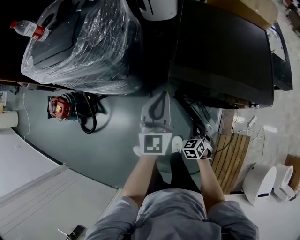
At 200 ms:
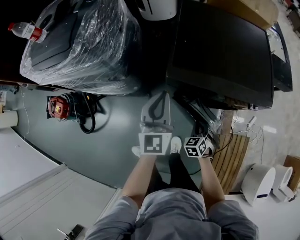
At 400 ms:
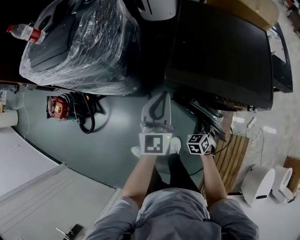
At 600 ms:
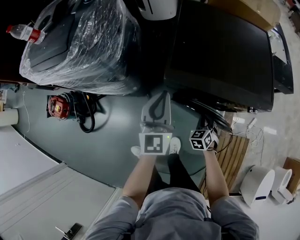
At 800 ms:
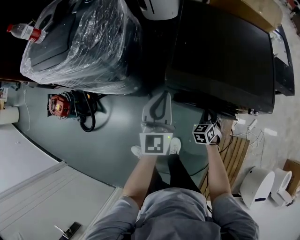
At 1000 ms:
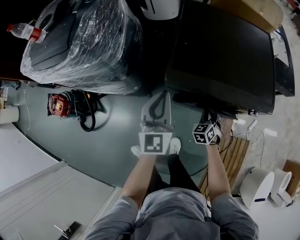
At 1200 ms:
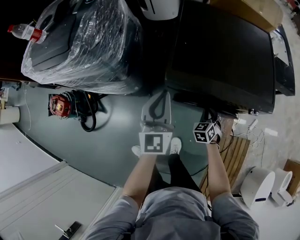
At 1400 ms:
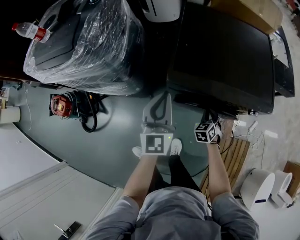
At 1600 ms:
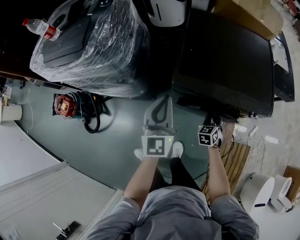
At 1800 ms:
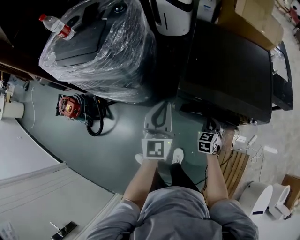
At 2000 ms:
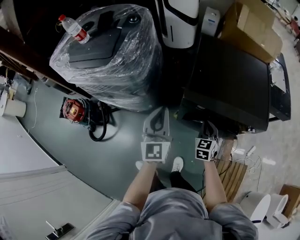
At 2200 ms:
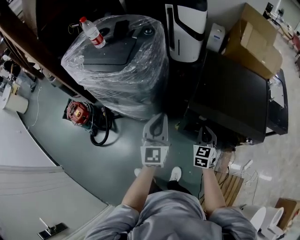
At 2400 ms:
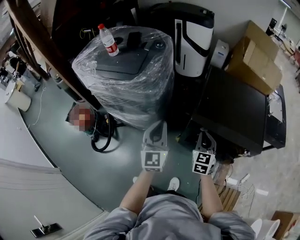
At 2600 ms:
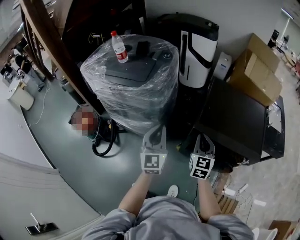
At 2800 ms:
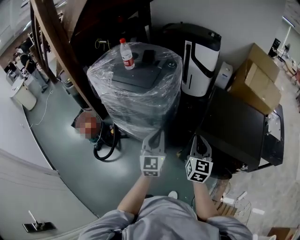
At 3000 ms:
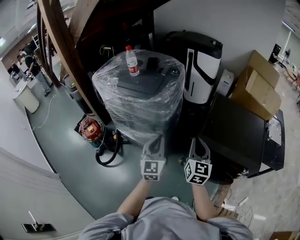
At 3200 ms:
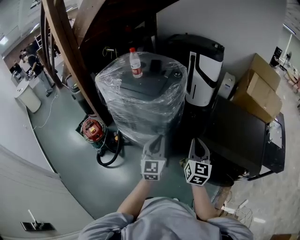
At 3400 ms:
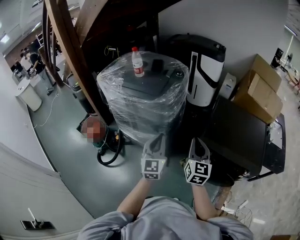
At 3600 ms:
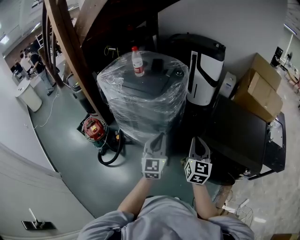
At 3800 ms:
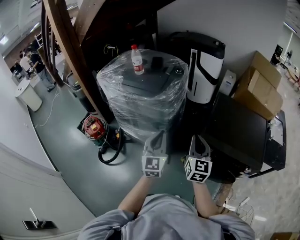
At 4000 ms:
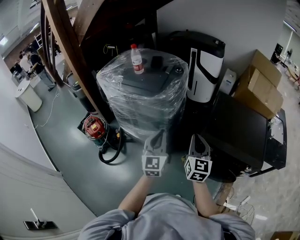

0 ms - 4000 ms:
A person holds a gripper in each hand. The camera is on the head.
0 ms - 1400 ms: The right gripper shifts some 15 cm forward and to the right.
1400 ms - 2600 ms: The left gripper travels to the left, upward and backward by approximately 20 cm, while the right gripper goes roughly 40 cm upward and to the left, and tilts its fingers approximately 30 degrees upward.
2600 ms - 4000 ms: The right gripper travels to the left and upward by about 10 cm; the left gripper shifts about 5 cm to the left.

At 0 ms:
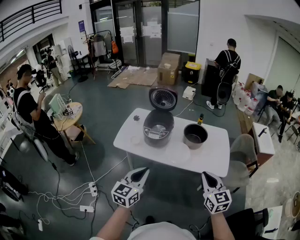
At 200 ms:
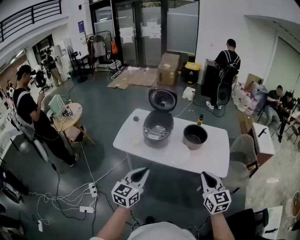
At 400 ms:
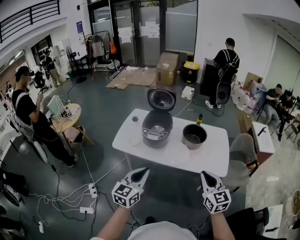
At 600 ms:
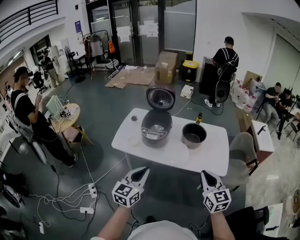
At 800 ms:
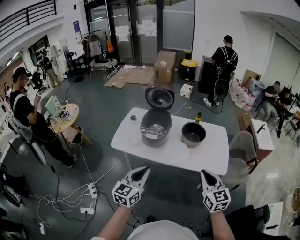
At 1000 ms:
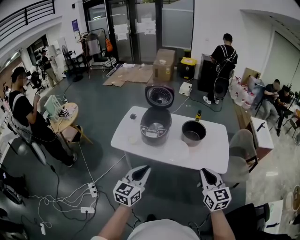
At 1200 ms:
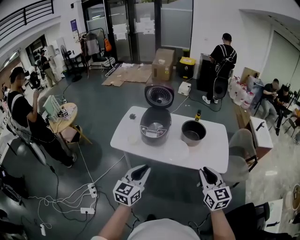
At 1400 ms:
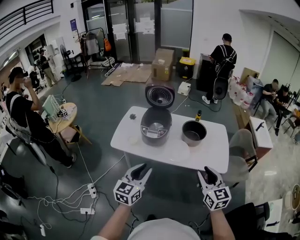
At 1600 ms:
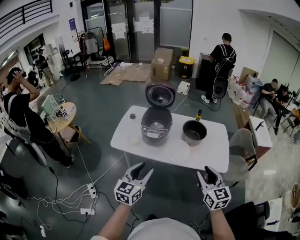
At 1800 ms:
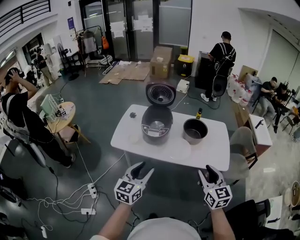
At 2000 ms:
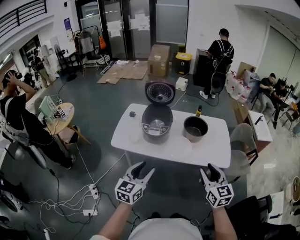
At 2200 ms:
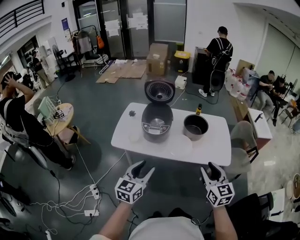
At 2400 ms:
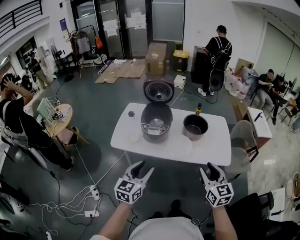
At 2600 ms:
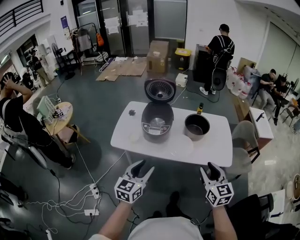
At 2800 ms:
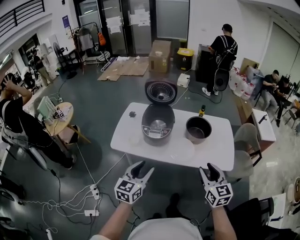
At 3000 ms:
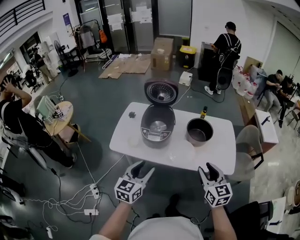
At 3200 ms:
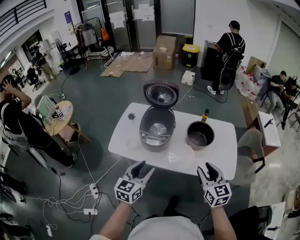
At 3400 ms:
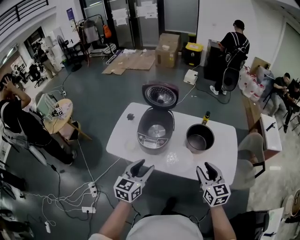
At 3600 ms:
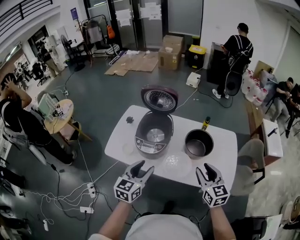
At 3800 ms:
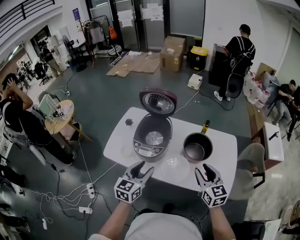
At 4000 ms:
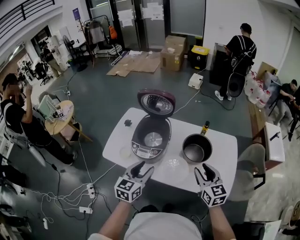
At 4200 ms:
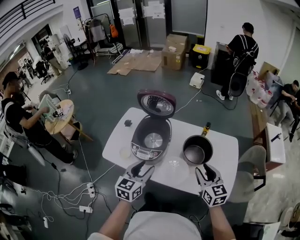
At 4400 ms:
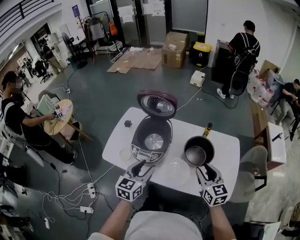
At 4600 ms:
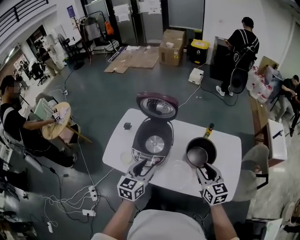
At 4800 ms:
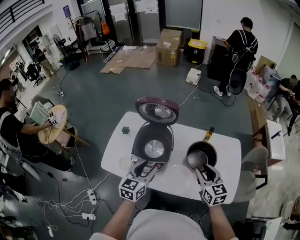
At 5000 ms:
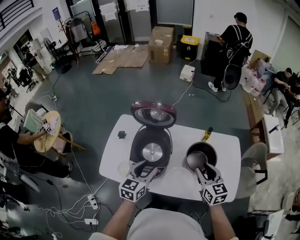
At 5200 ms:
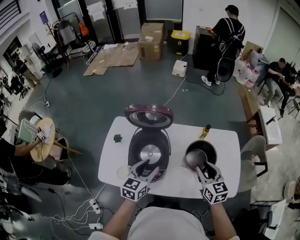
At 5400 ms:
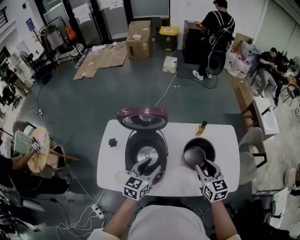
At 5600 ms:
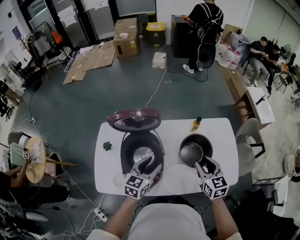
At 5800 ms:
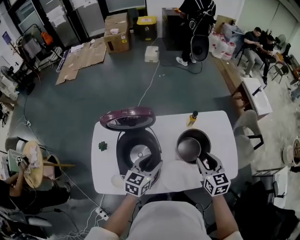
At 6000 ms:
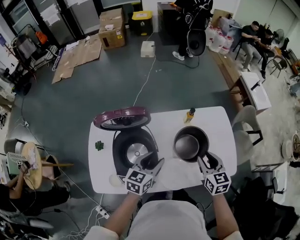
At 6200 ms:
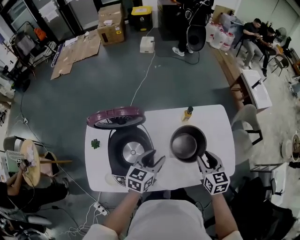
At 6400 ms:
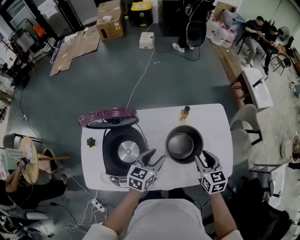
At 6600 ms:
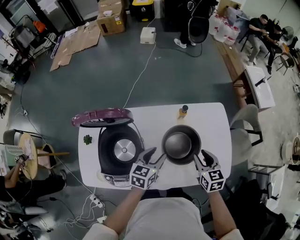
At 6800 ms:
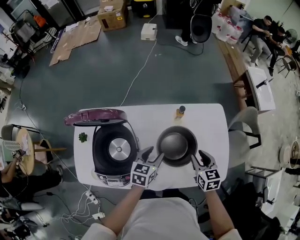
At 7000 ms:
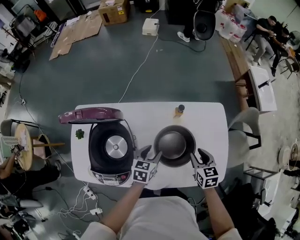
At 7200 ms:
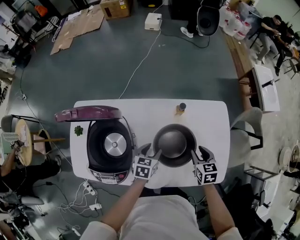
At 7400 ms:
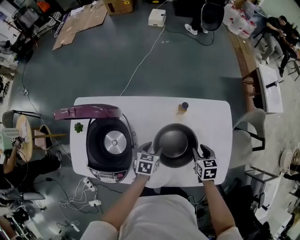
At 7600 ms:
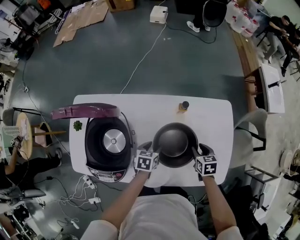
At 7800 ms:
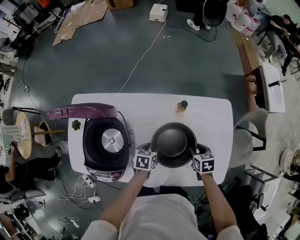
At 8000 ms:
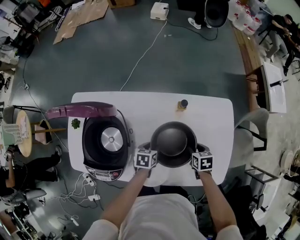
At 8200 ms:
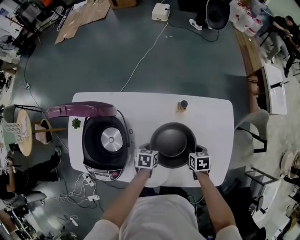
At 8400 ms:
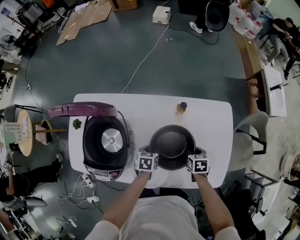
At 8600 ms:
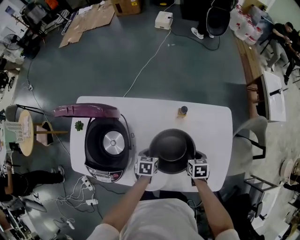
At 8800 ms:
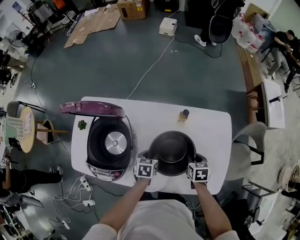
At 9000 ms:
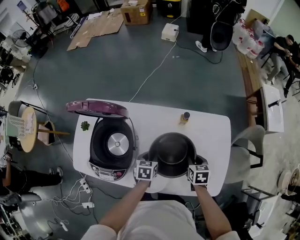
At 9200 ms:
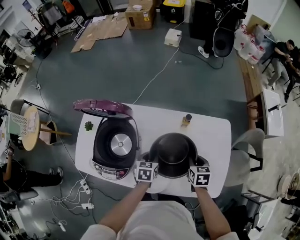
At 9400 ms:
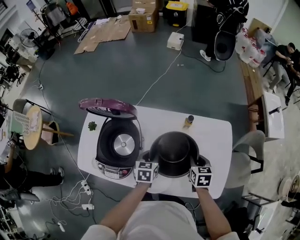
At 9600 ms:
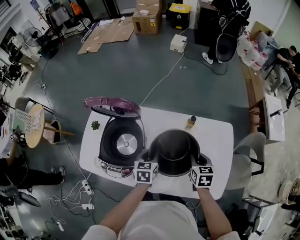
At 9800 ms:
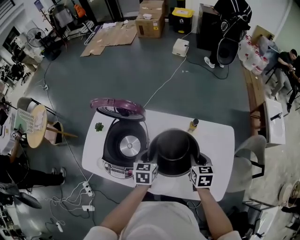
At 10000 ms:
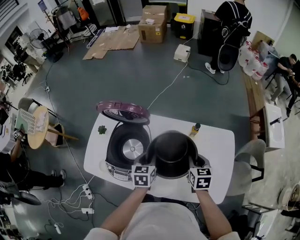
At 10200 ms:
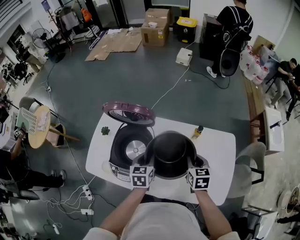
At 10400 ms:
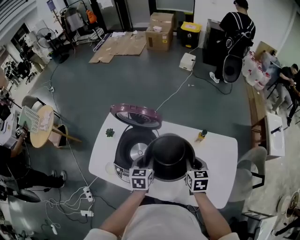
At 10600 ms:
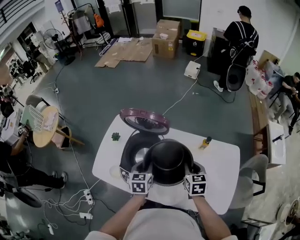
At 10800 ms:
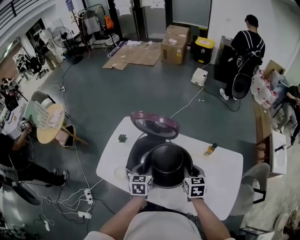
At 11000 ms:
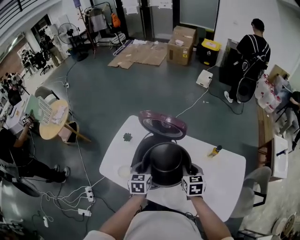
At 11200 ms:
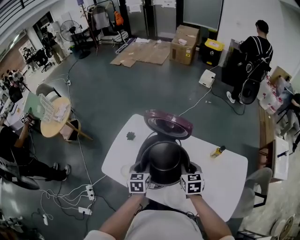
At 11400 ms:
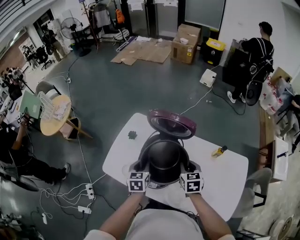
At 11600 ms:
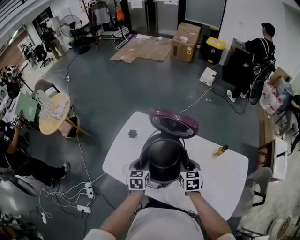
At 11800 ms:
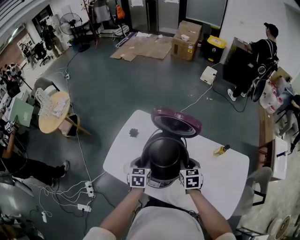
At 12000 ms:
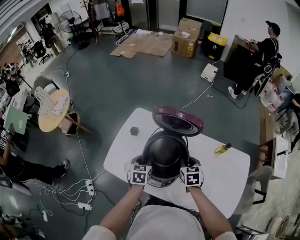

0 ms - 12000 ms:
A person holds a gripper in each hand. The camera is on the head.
0 ms - 1600 ms: The left gripper opens up. The right gripper opens.
1600 ms - 3000 ms: Both grippers move forward, about 10 cm.
3000 ms - 4400 ms: The two grippers go approximately 20 cm forward.
4400 ms - 6000 ms: The right gripper changes place by about 15 cm, and swivels some 30 degrees; the left gripper moves some 20 cm, and rotates some 30 degrees.
6000 ms - 7600 ms: The right gripper moves downward, to the right and forward, roughly 30 cm, and changes its angle by roughly 30 degrees, while the left gripper heads downward and to the right, covering some 25 cm, and points its fingers about 30 degrees further downward.
7600 ms - 9000 ms: The left gripper closes up. Meanwhile the right gripper ends up roughly 5 cm from where it was.
9000 ms - 10400 ms: Both grippers move upward and to the left, roughly 20 cm. The left gripper swivels some 20 degrees.
10400 ms - 12000 ms: The grippers both shift to the left by approximately 20 cm.

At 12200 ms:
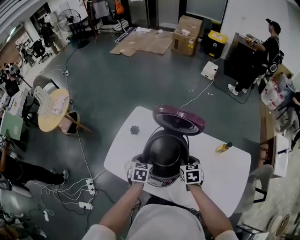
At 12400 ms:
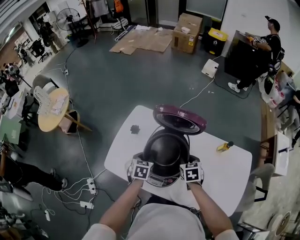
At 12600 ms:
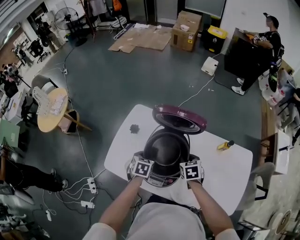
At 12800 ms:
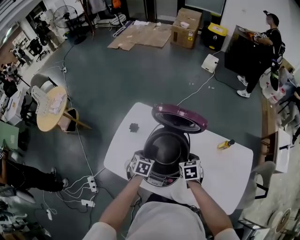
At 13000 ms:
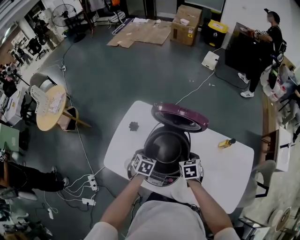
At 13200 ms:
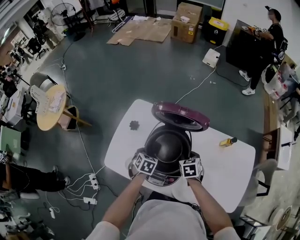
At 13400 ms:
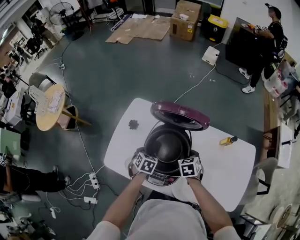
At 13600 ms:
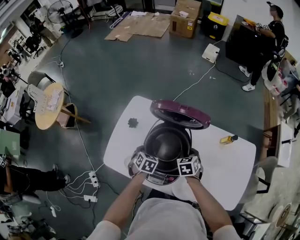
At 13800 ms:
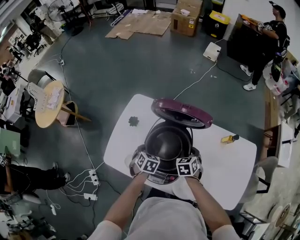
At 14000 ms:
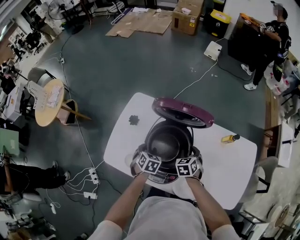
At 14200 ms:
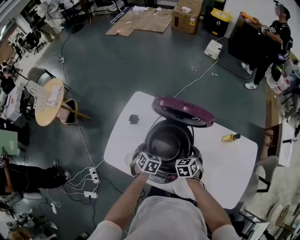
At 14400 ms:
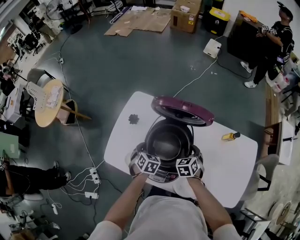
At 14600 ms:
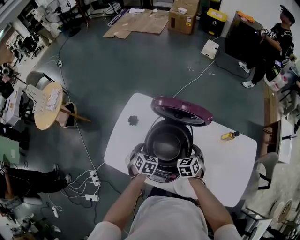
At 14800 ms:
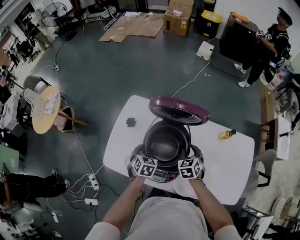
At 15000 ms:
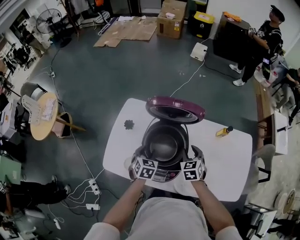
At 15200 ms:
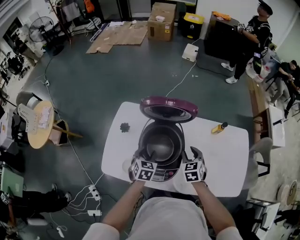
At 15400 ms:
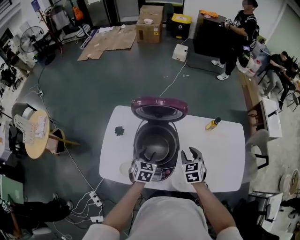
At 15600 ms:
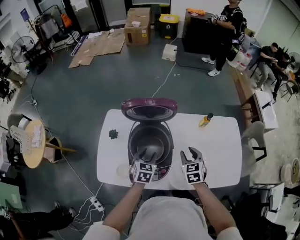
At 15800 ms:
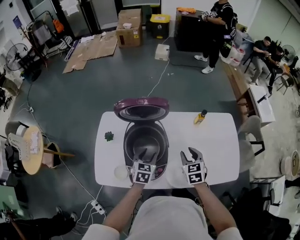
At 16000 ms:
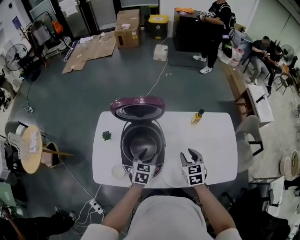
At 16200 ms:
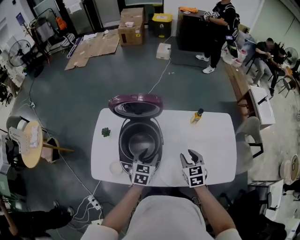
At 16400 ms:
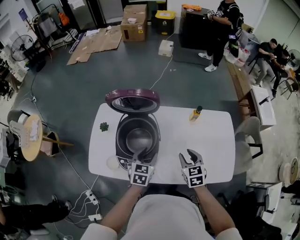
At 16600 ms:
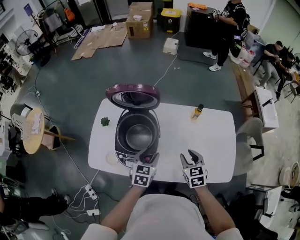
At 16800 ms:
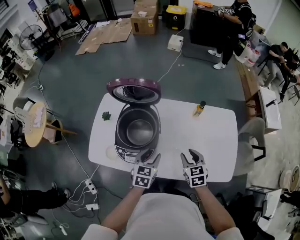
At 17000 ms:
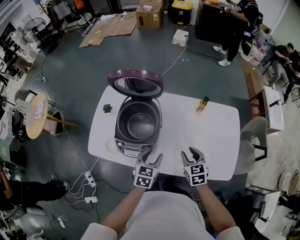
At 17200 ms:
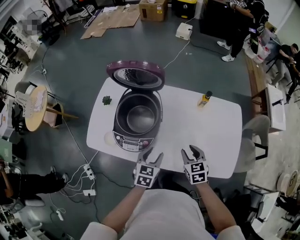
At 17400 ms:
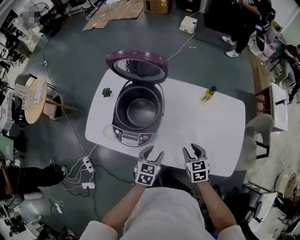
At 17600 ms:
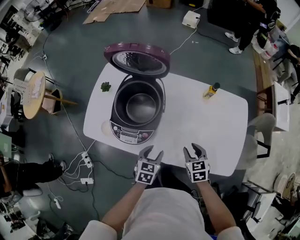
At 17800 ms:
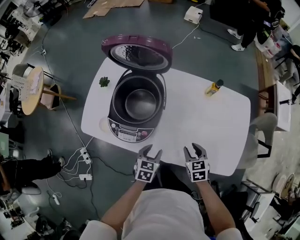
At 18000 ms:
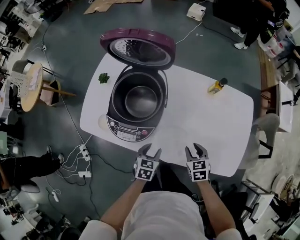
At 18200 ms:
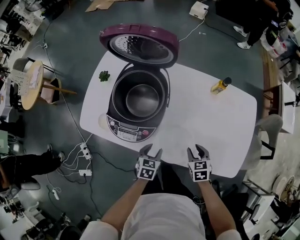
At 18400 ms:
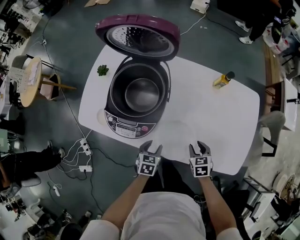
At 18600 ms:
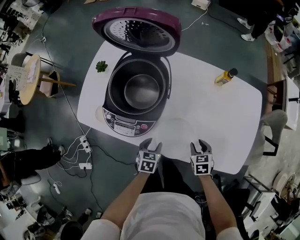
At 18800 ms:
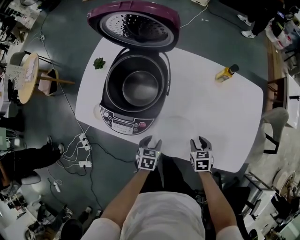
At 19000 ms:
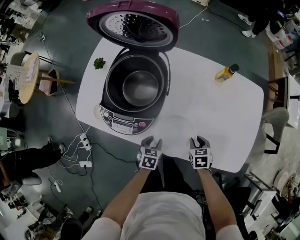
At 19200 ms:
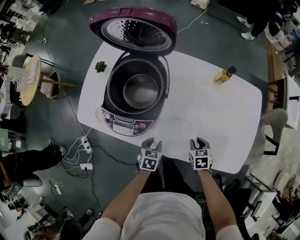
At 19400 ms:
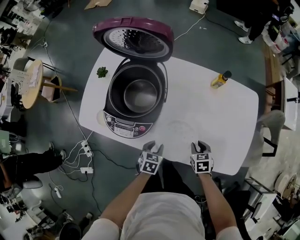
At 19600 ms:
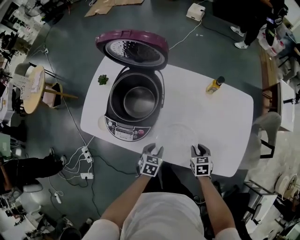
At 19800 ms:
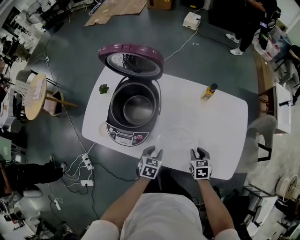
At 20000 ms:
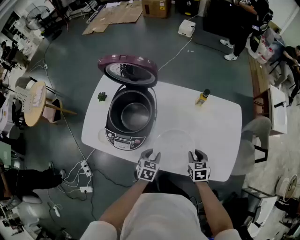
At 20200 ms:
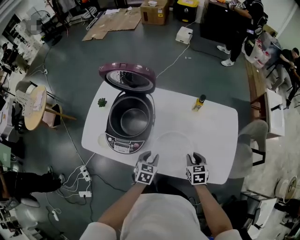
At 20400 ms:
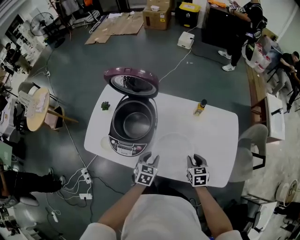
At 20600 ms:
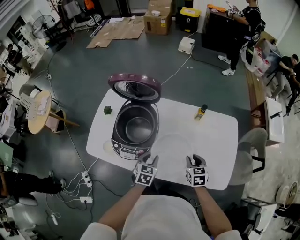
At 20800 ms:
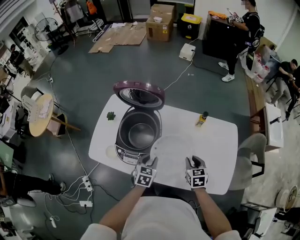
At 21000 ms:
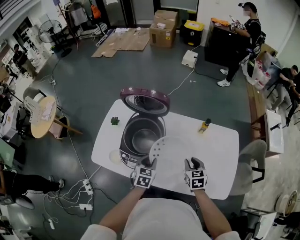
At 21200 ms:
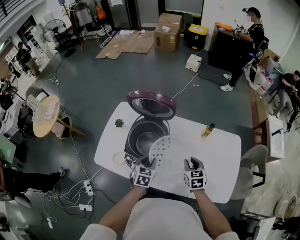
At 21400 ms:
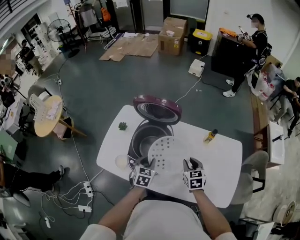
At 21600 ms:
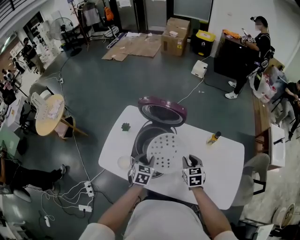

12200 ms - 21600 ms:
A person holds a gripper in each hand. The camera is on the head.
12200 ms - 13800 ms: Both grippers travel together downward, approximately 5 cm. The left gripper changes its angle by some 20 degrees.
13800 ms - 15400 ms: The left gripper moves upward and to the right, about 10 cm, and swivels approximately 20 degrees, while the right gripper heads upward and backward, covering some 10 cm.
15400 ms - 17000 ms: Both grippers travel together to the right and backward, some 20 cm.
17000 ms - 18400 ms: The grippers both shift downward by about 20 cm. The left gripper rotates roughly 20 degrees.
18400 ms - 20000 ms: Both grippers move upward, some 10 cm.
20000 ms - 21600 ms: The two grippers go about 25 cm to the left, upward and forward.
